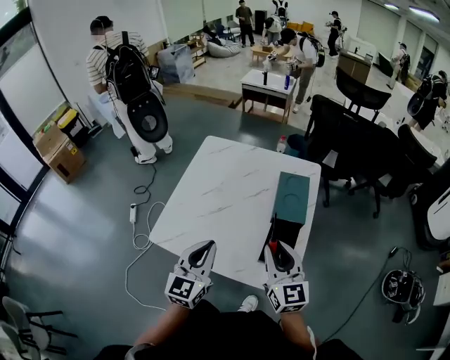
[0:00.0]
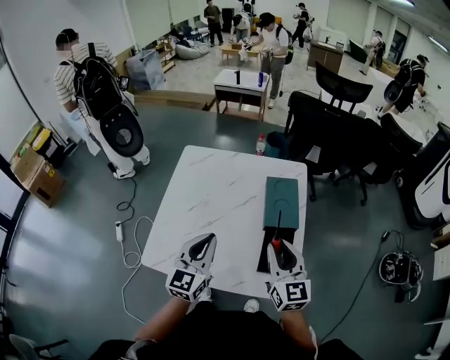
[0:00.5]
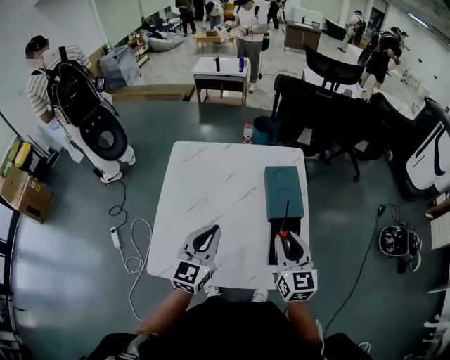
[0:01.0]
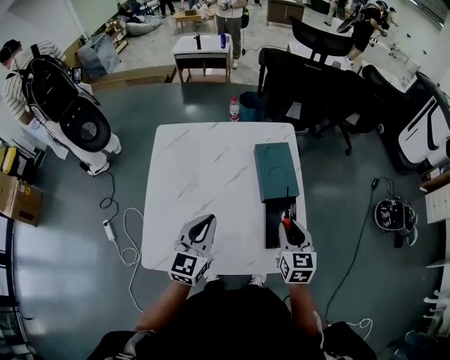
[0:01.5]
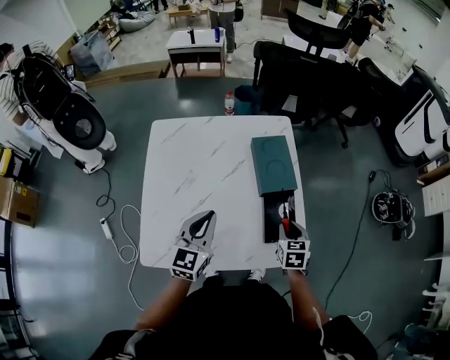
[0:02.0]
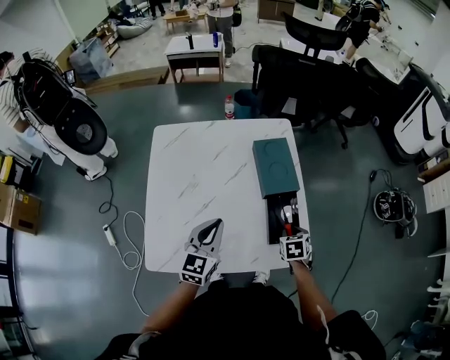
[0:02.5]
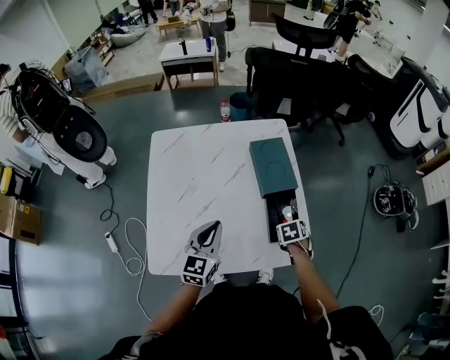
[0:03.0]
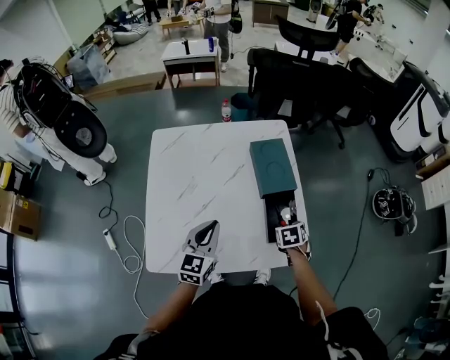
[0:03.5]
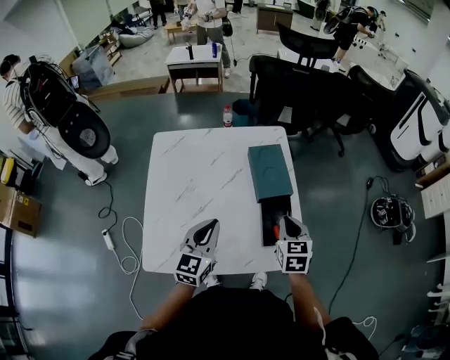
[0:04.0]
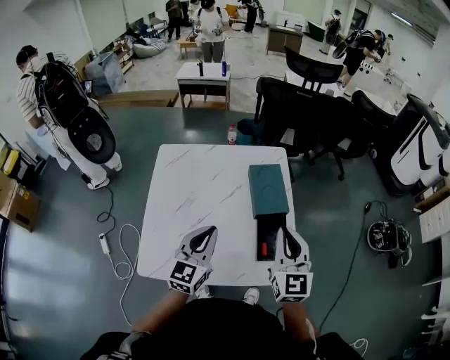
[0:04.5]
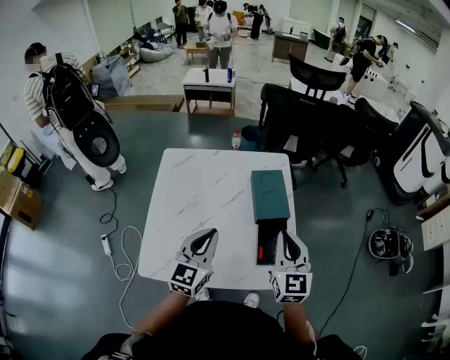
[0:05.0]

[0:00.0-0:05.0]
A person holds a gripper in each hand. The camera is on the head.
0:00.0 to 0:02.5: The right gripper travels downward by some 25 cm, and tilts its fingers roughly 60 degrees downward. The left gripper shifts by about 15 cm, and turns by roughly 30 degrees.
0:02.5 to 0:05.0: The left gripper moves upward, roughly 10 cm; the right gripper goes roughly 30 cm upward, tips its fingers upward by about 60 degrees, and closes its fingers.

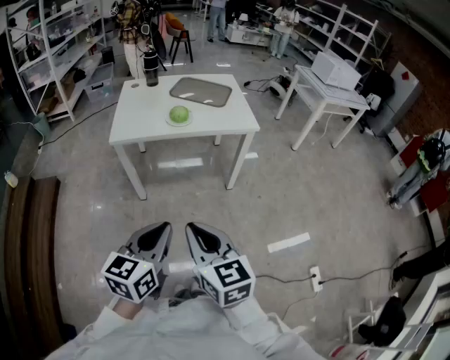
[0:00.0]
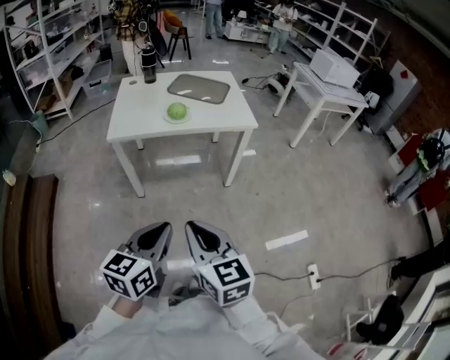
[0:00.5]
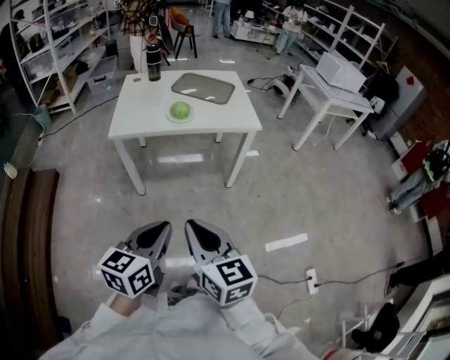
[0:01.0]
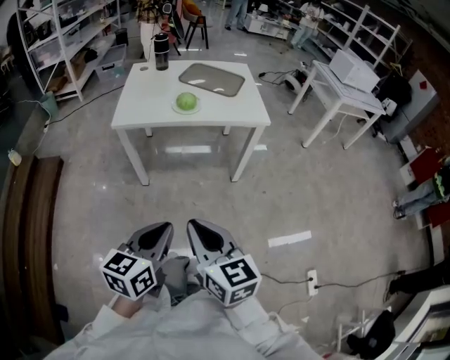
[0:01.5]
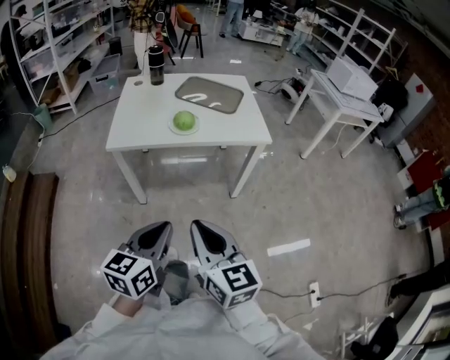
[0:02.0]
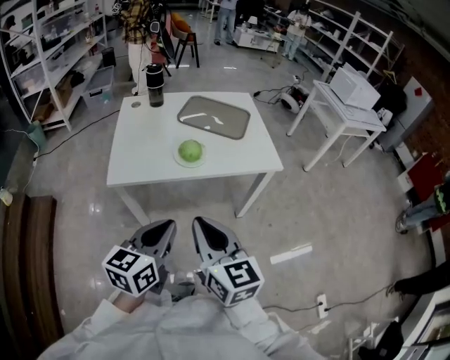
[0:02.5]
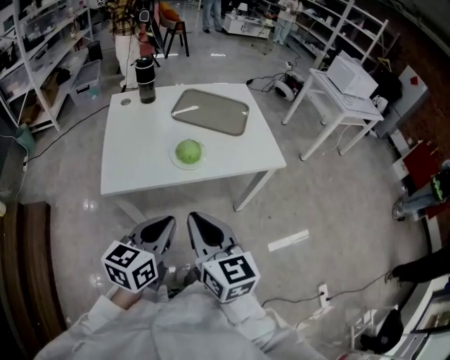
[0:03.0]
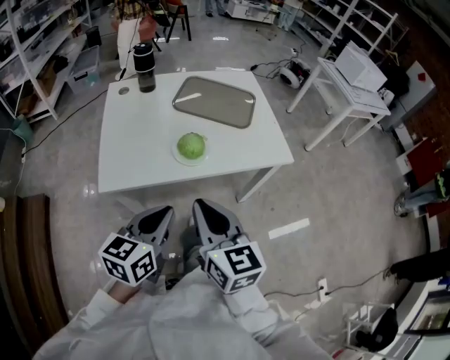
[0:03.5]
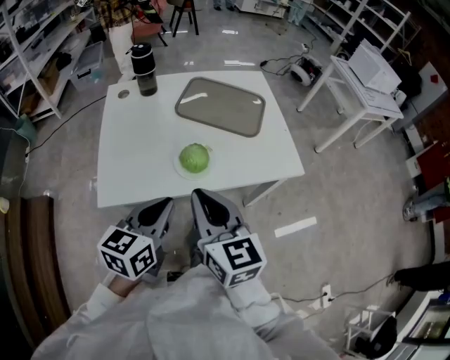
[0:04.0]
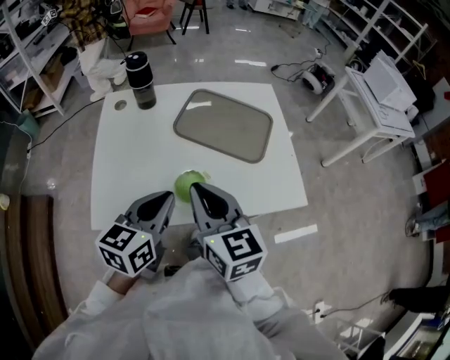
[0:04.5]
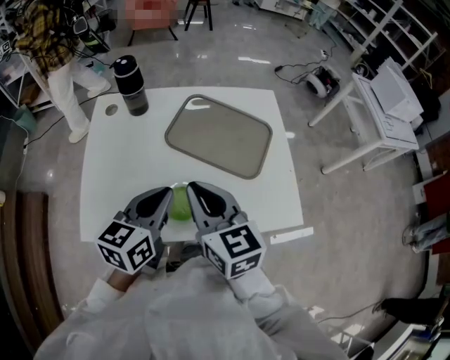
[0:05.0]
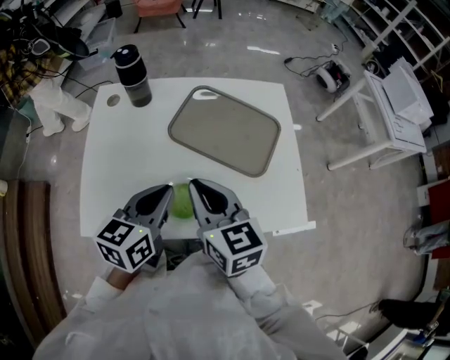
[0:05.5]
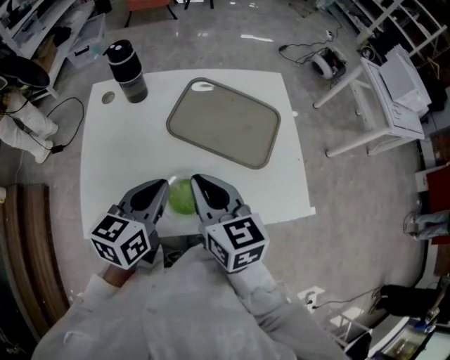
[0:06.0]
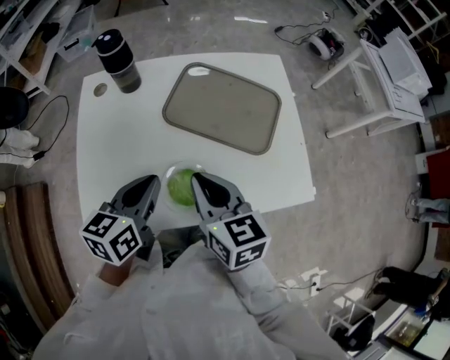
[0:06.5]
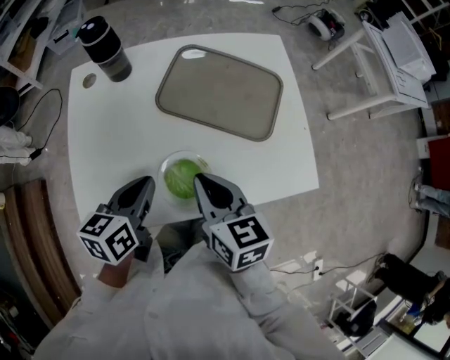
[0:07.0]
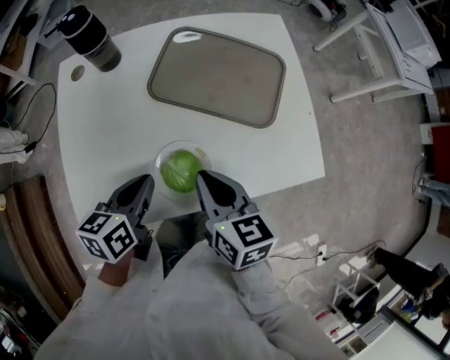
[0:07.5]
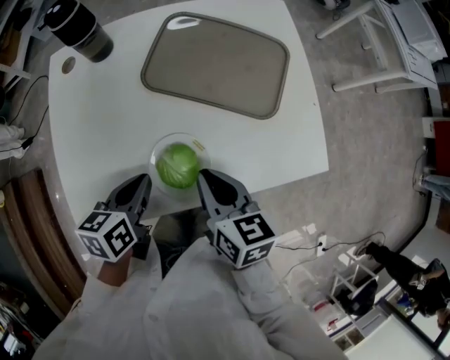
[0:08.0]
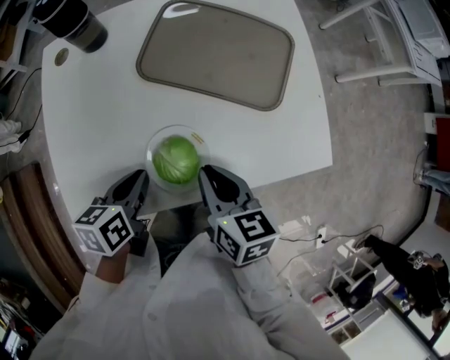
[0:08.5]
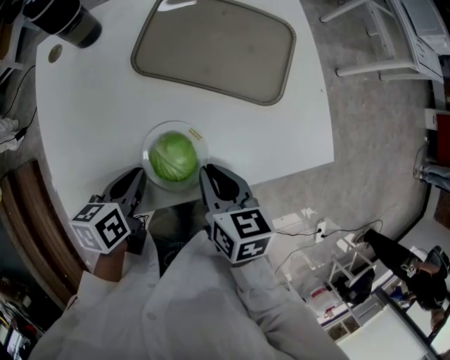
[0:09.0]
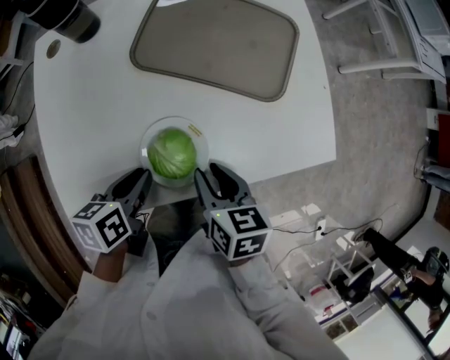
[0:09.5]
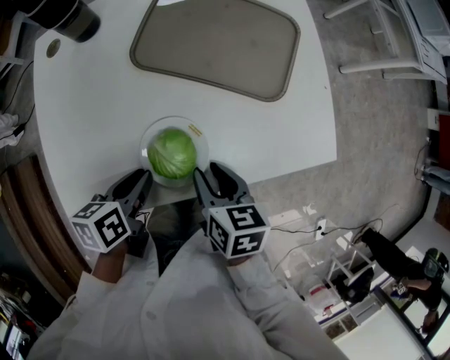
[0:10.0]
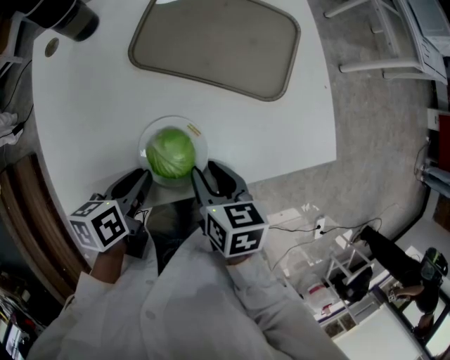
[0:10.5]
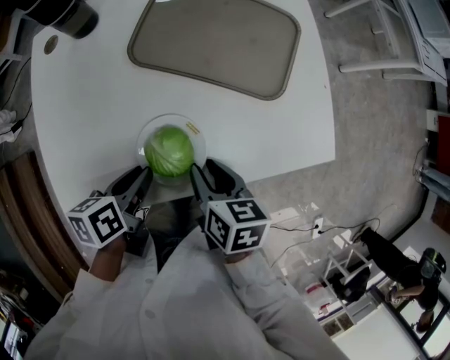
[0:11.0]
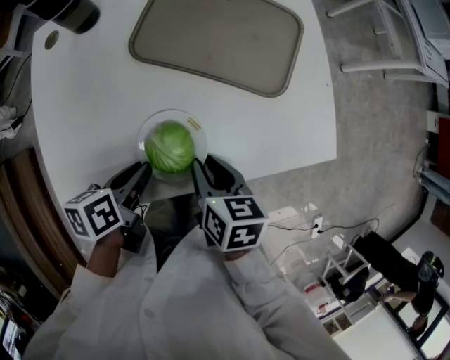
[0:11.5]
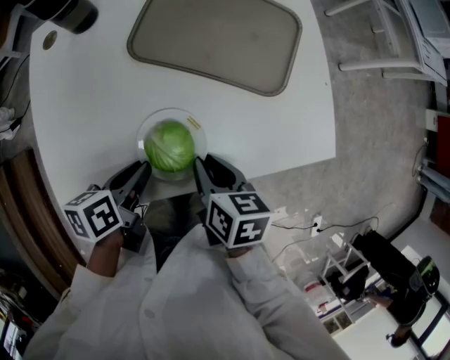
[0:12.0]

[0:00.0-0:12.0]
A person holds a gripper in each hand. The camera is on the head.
0:00.0 to 0:02.0: The two grippers go about 15 cm forward.
0:02.0 to 0:04.0: Both grippers move forward, approximately 40 cm.
0:04.0 to 0:06.0: The two grippers go roughly 25 cm forward.
0:06.0 to 0:08.0: Both grippers move downward, some 15 cm. The left gripper swivels about 20 degrees. The right gripper swivels roughly 20 degrees.
0:08.0 to 0:10.0: The left gripper ends up about 5 cm from where it was. Meanwhile the right gripper travels downward by approximately 5 cm, and opens.
0:10.0 to 0:12.0: The grippers move only a little.

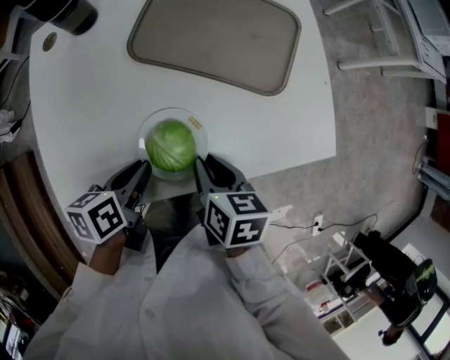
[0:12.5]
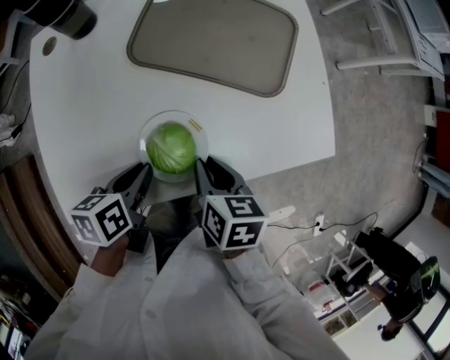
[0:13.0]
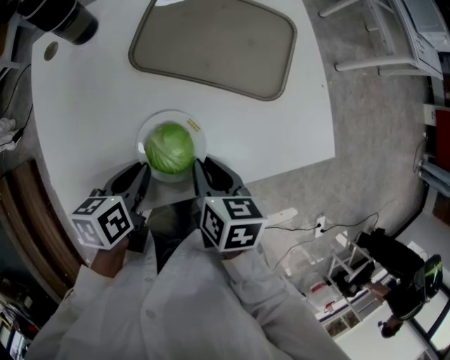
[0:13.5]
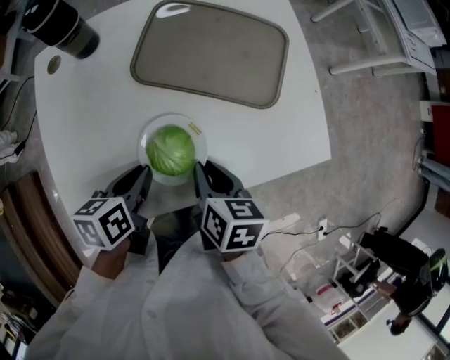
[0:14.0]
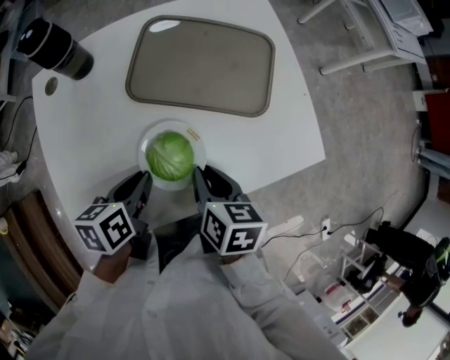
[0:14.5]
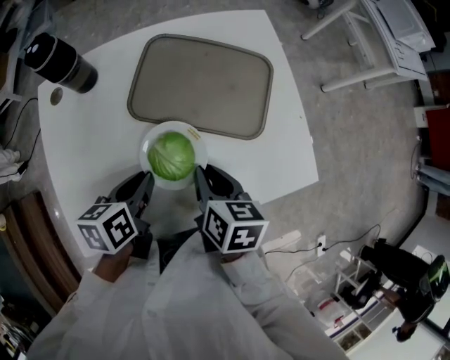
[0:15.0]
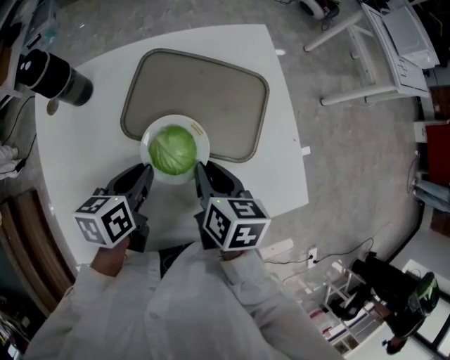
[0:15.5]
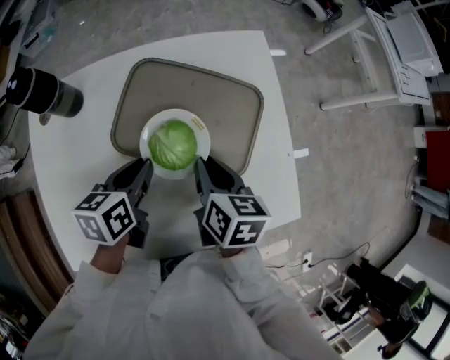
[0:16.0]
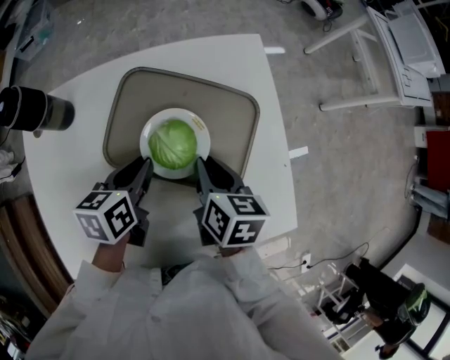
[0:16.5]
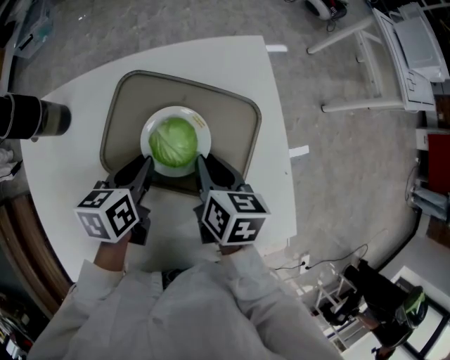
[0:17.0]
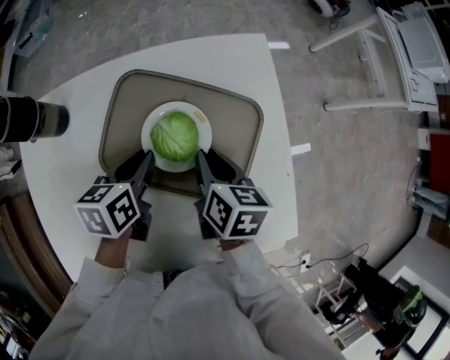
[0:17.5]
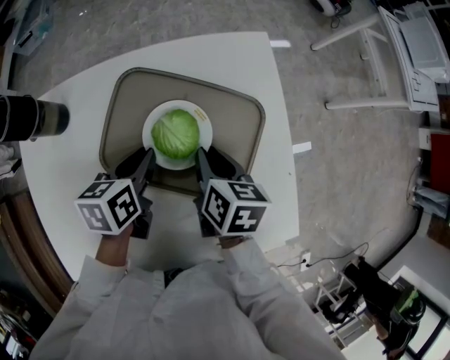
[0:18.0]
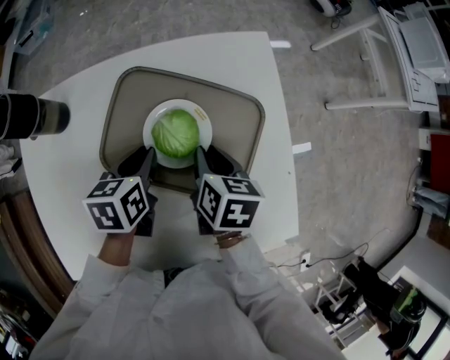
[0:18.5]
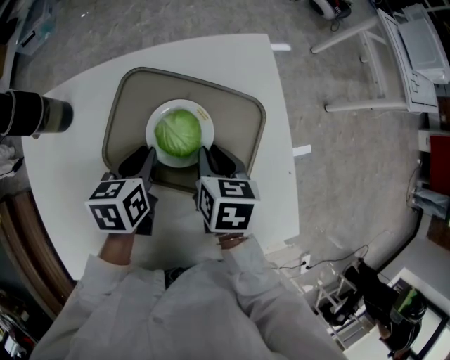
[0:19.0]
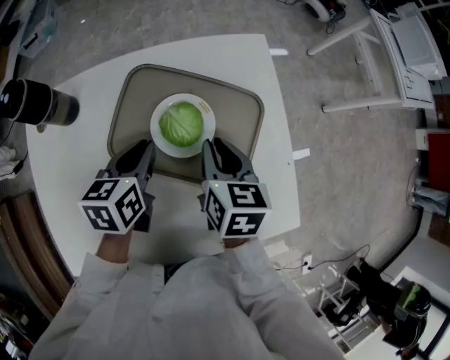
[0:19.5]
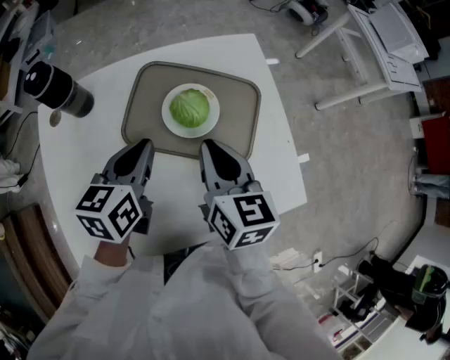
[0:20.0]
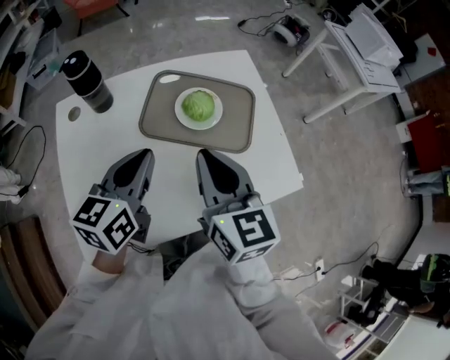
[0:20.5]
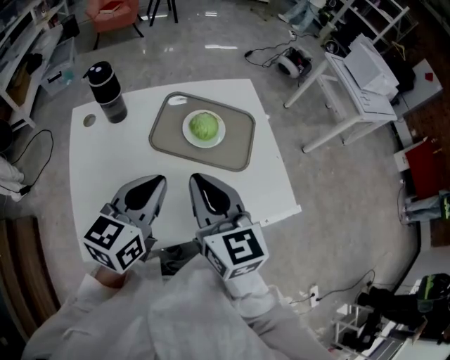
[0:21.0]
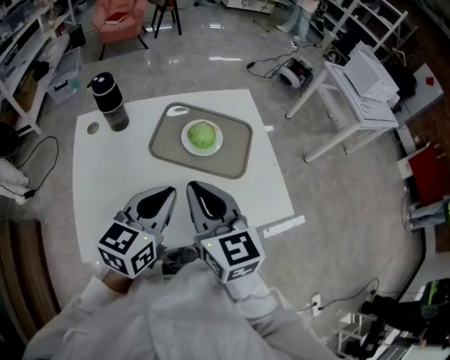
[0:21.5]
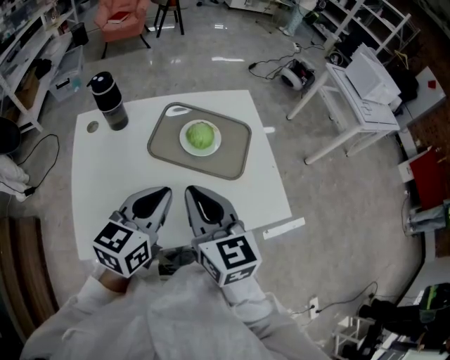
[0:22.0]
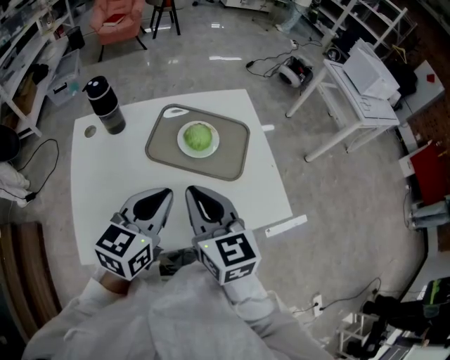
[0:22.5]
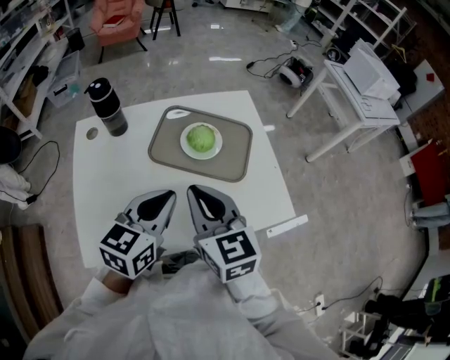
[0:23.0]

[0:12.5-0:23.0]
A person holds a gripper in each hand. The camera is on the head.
0:12.5 to 0:14.5: The left gripper moves roughly 5 cm.
0:14.5 to 0:16.5: The grippers both shift forward by approximately 20 cm.
0:16.5 to 0:19.0: The right gripper ends up roughly 5 cm from where it was.
0:19.0 to 0:21.0: The left gripper travels backward and upward by some 30 cm, and tilts its fingers about 30 degrees upward; the right gripper heads upward and backward, covering some 35 cm, and tips its fingers upward by some 40 degrees.
0:21.0 to 0:23.0: The grippers move only a little.
